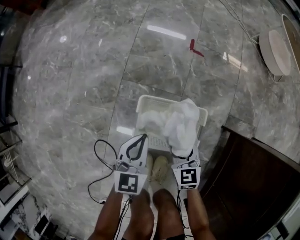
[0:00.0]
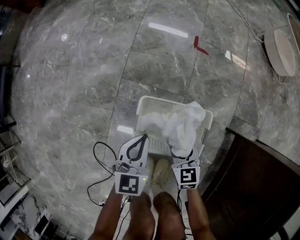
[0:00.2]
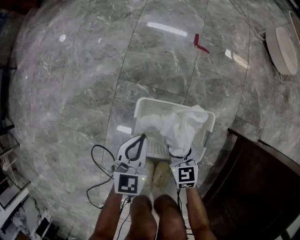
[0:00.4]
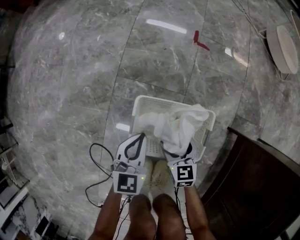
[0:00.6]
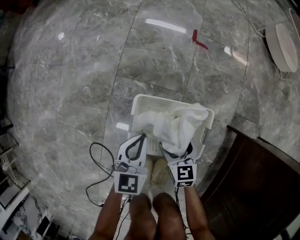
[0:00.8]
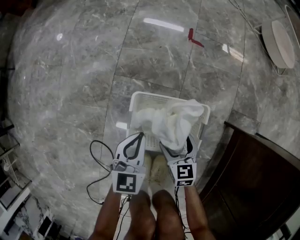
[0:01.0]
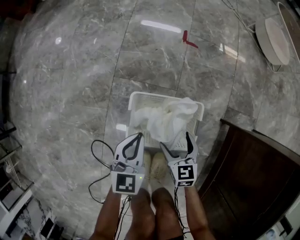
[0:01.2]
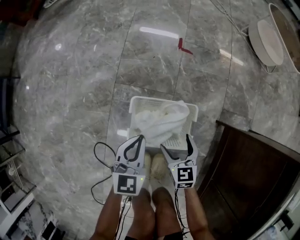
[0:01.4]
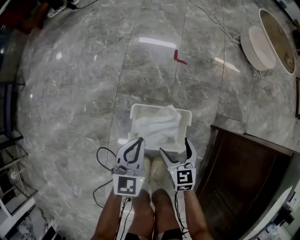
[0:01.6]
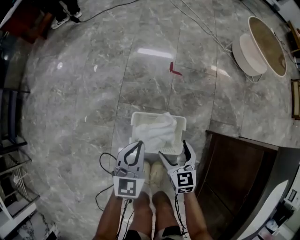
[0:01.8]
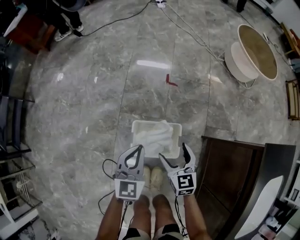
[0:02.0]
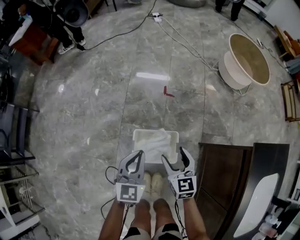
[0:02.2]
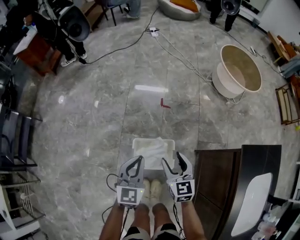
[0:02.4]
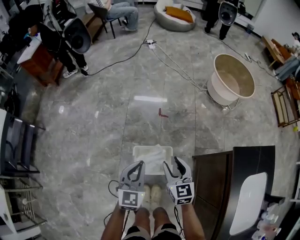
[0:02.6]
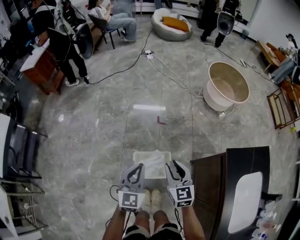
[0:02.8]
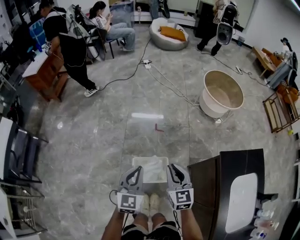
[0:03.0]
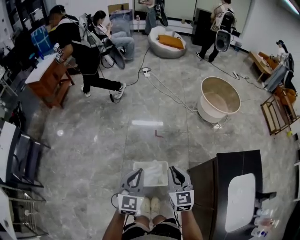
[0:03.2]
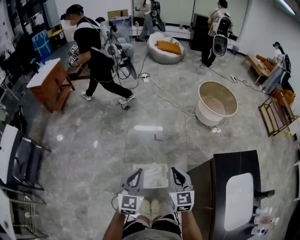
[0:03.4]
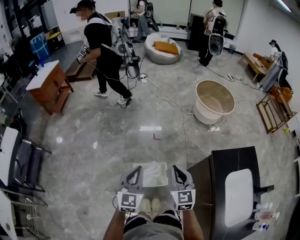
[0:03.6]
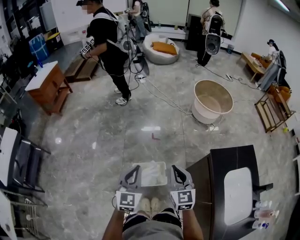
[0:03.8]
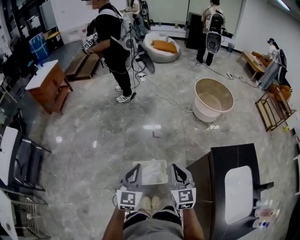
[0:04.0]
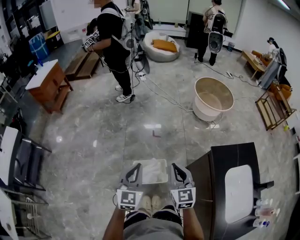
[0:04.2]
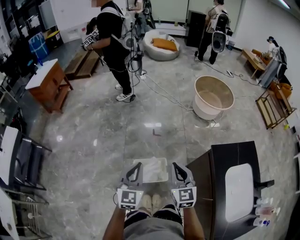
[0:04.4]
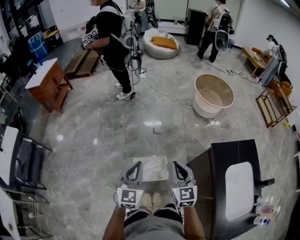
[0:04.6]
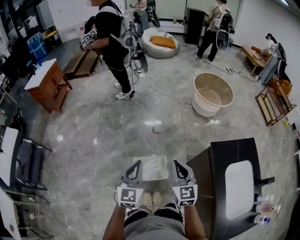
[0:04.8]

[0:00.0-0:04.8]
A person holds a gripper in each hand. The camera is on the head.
0:00.0 to 0:01.6: The grippers both shift upward by roughly 10 cm. The right gripper opens.
0:01.6 to 0:03.2: Both grippers travel together upward, about 50 cm. The right gripper turns by some 30 degrees, and closes up; the left gripper swivels roughly 20 degrees.
0:03.2 to 0:04.8: The left gripper changes place by about 5 cm. The right gripper travels backward and upward by approximately 10 cm.

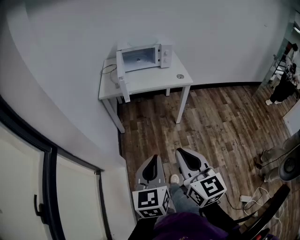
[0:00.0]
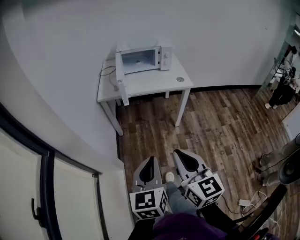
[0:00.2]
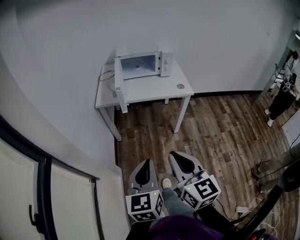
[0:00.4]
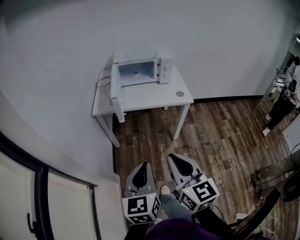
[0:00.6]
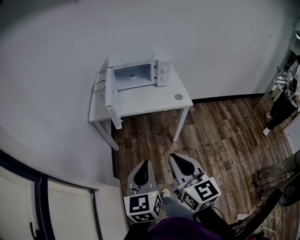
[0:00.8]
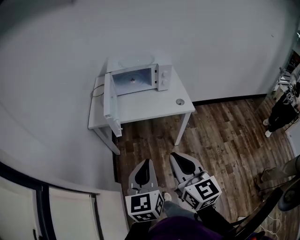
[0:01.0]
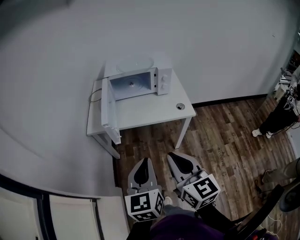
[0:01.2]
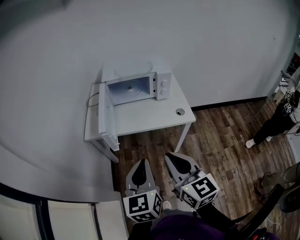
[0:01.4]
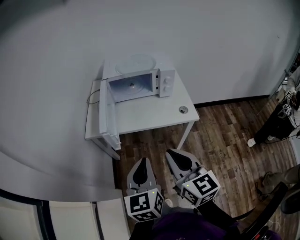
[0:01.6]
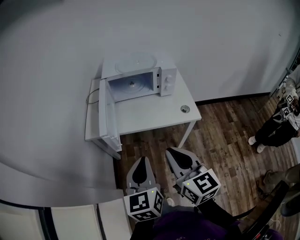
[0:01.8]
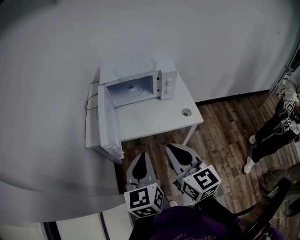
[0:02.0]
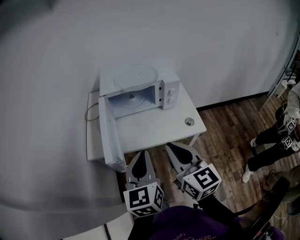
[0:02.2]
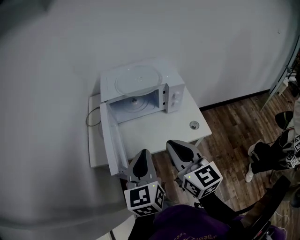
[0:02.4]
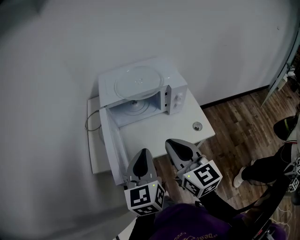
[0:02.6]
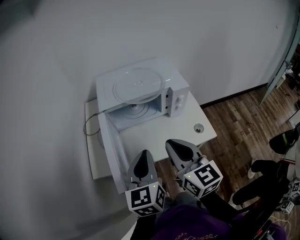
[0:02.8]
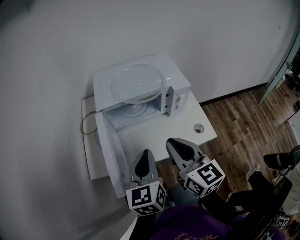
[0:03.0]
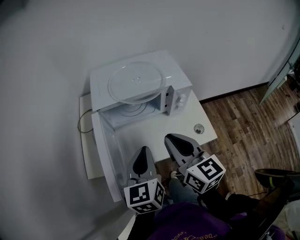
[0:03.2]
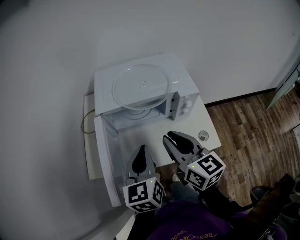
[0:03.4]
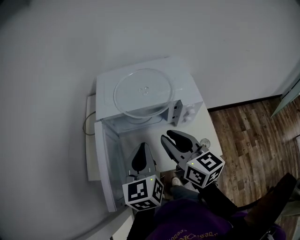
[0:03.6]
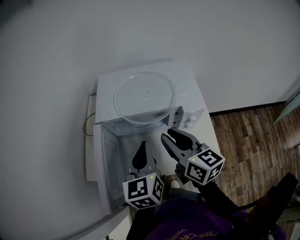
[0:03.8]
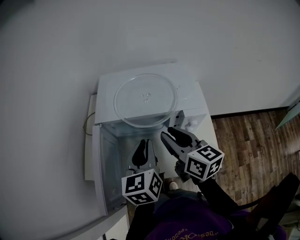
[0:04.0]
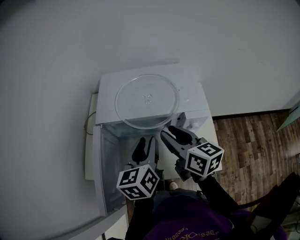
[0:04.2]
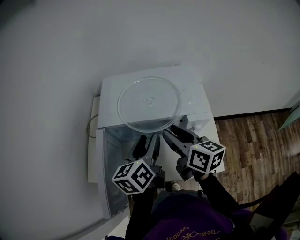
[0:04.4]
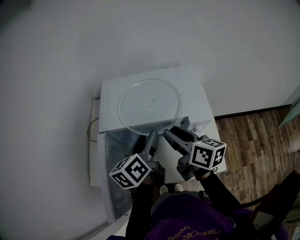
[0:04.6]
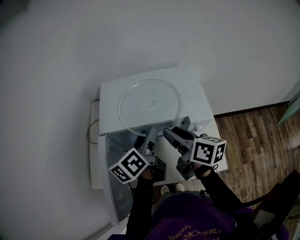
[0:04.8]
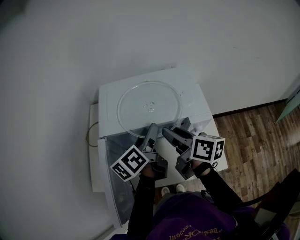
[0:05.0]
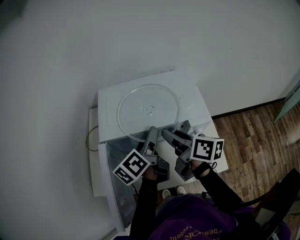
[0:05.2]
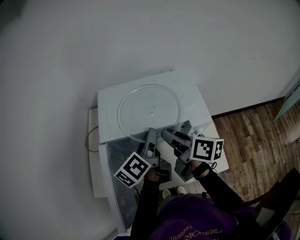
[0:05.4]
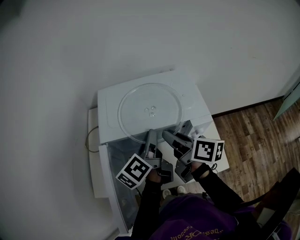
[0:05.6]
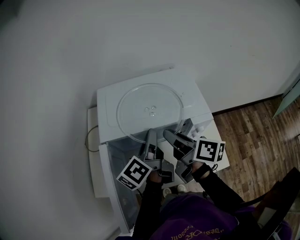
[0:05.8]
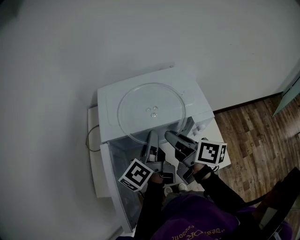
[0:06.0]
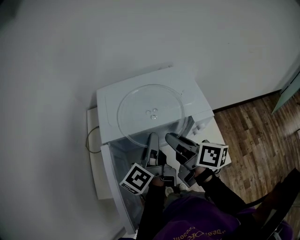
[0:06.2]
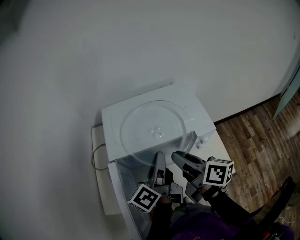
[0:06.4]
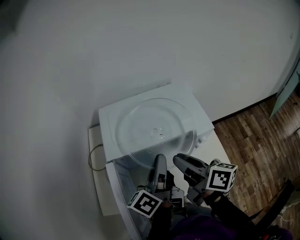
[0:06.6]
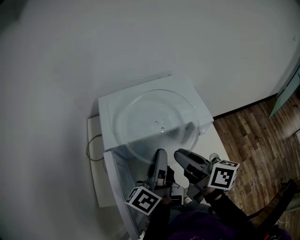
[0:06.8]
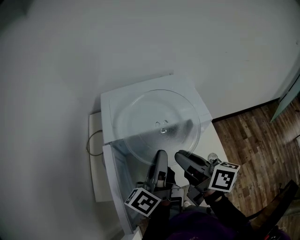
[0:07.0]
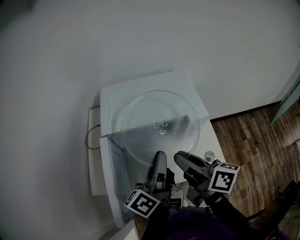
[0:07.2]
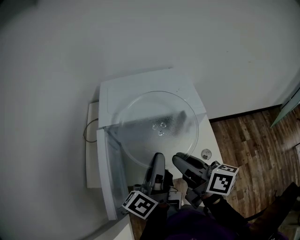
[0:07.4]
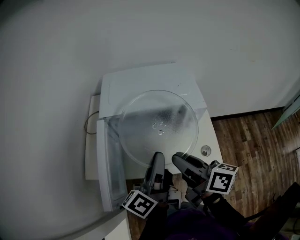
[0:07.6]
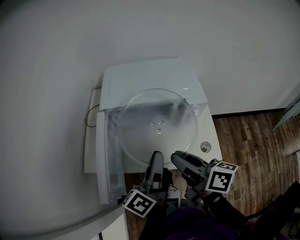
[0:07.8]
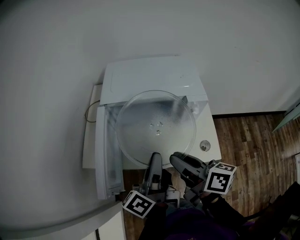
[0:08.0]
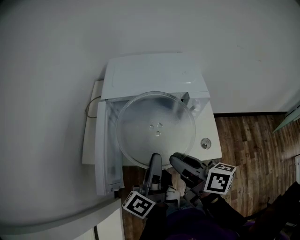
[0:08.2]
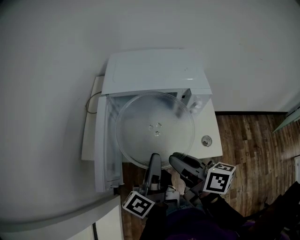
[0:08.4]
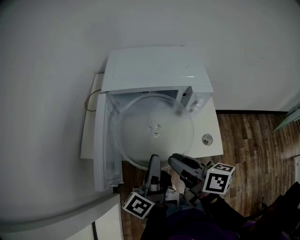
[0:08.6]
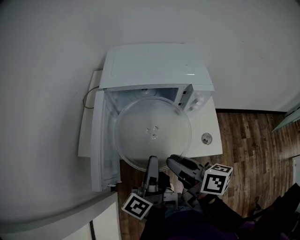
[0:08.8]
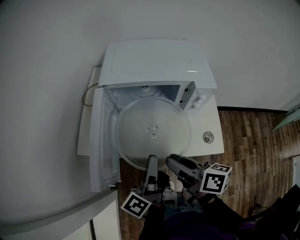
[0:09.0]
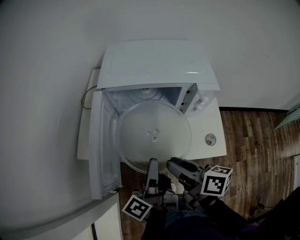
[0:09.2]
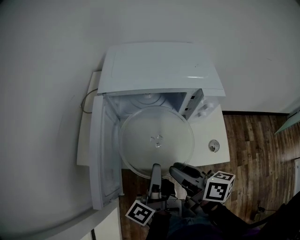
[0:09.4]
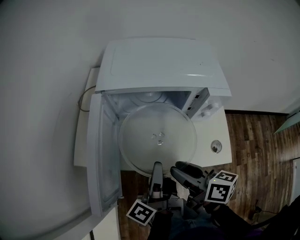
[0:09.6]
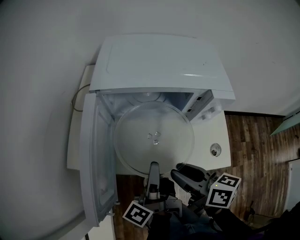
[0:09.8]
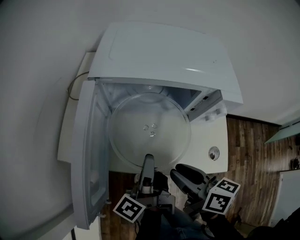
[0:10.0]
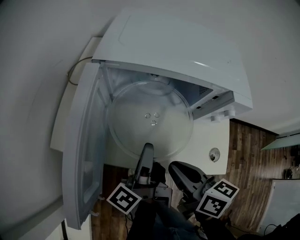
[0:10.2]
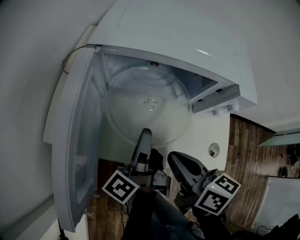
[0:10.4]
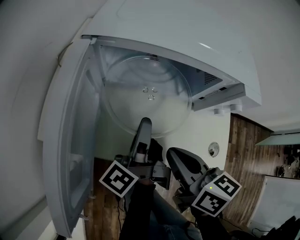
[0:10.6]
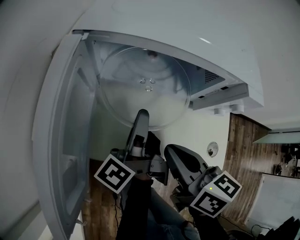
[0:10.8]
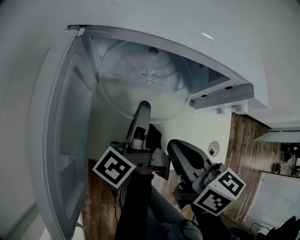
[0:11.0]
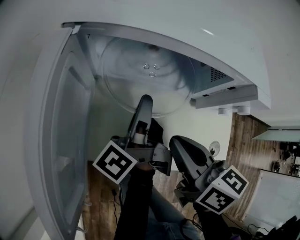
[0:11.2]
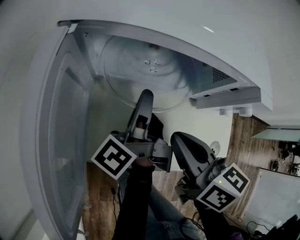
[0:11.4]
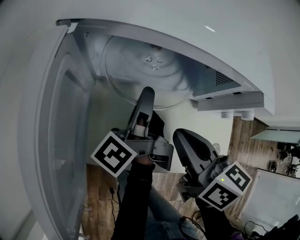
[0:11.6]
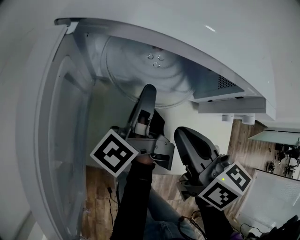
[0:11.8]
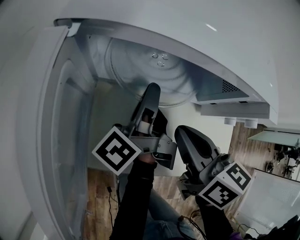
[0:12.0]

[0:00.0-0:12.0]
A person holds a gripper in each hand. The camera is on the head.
0:00.0 to 0:01.6: Both grippers move forward, about 30 cm.
0:01.6 to 0:03.0: The grippers both shift forward by roughly 25 cm.
0:03.0 to 0:04.4: The left gripper shifts some 20 cm forward and to the right, rotates some 20 degrees, and opens up, while the right gripper travels forward by about 20 cm, swivels approximately 30 degrees, and opens.
0:04.4 to 0:06.0: The right gripper rotates about 30 degrees, while the left gripper turns by about 30 degrees, and closes its fingers.
0:06.0 to 0:07.6: Both grippers travel together backward, approximately 15 cm.
0:07.6 to 0:09.0: The left gripper heads downward and backward, covering approximately 10 cm, while the right gripper travels downward by about 10 cm.
0:09.0 to 0:10.4: The right gripper travels downward and forward by approximately 10 cm, and closes up. Meanwhile the left gripper goes about 15 cm forward and downward.
0:10.4 to 0:12.0: Both grippers travel together forward, approximately 10 cm.

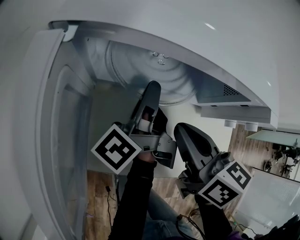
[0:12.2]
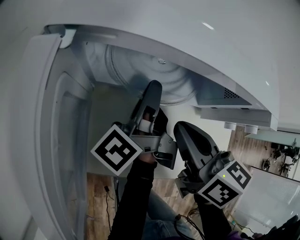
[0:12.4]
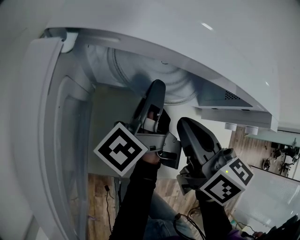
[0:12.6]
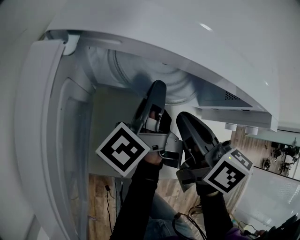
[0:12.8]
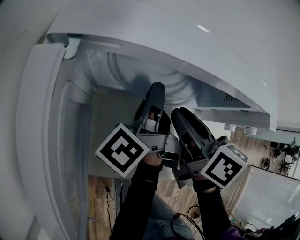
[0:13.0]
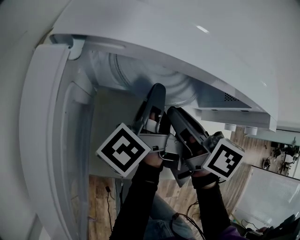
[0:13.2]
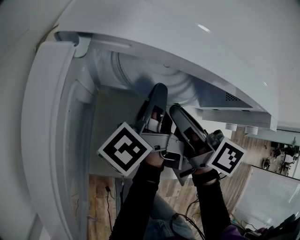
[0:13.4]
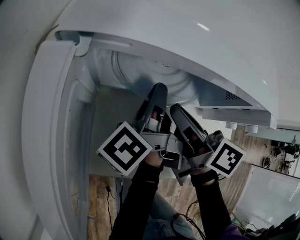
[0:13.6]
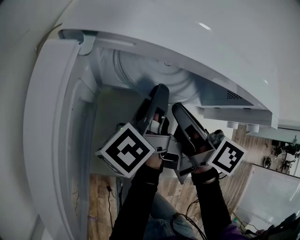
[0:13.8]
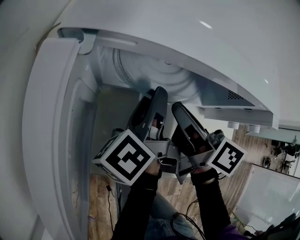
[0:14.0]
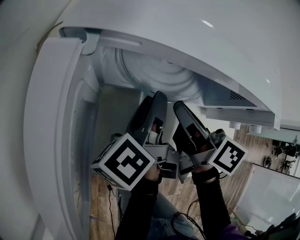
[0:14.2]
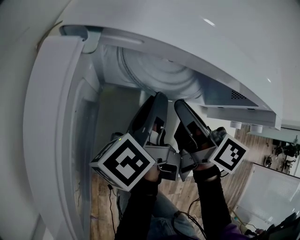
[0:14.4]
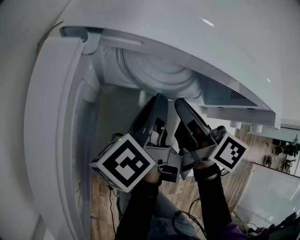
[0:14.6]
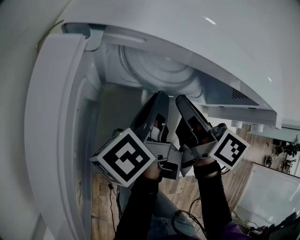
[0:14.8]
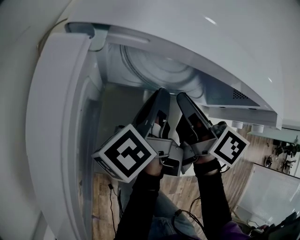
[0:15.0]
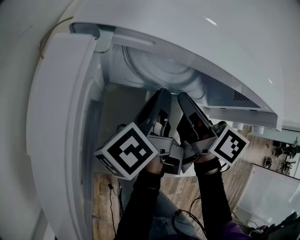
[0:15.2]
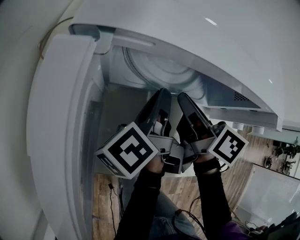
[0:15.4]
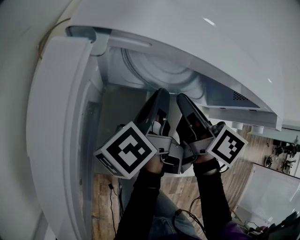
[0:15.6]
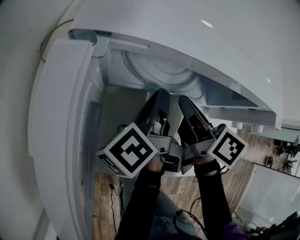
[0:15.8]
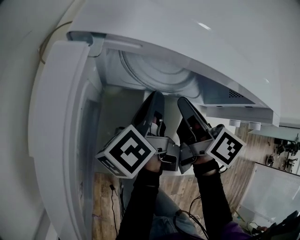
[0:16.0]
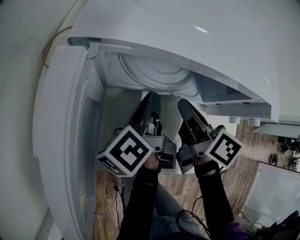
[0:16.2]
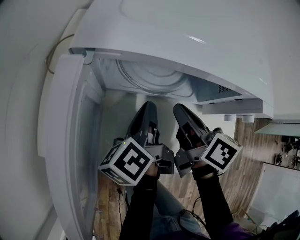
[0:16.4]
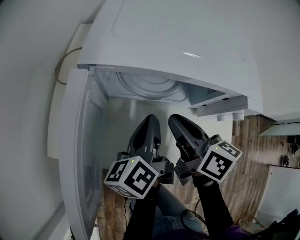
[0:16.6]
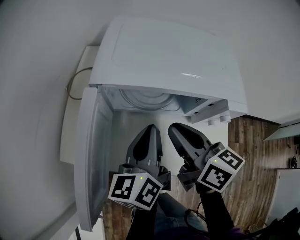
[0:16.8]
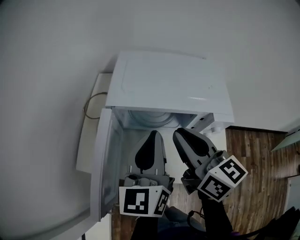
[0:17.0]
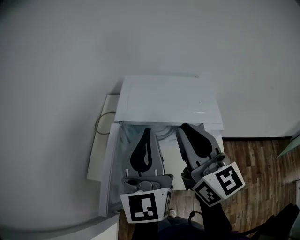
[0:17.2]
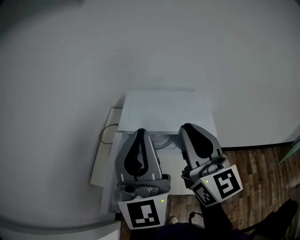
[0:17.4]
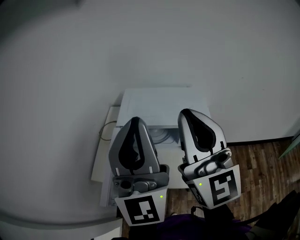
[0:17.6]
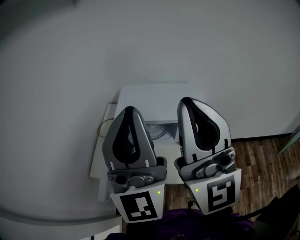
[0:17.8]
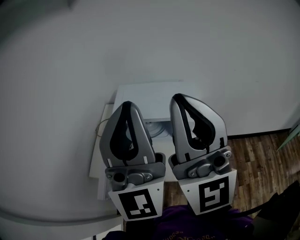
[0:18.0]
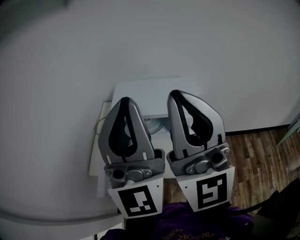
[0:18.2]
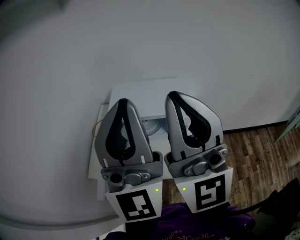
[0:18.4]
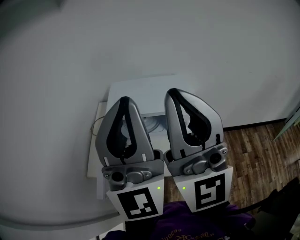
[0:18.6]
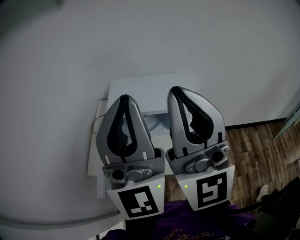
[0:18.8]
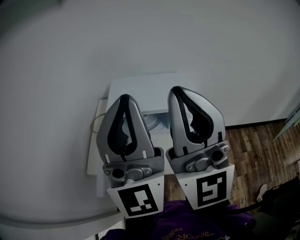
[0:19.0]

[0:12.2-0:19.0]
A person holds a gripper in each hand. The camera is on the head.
0:12.2 to 0:13.6: The right gripper shifts by some 5 cm, and changes its angle by approximately 20 degrees.
0:13.6 to 0:15.0: The left gripper opens and closes again.
0:15.0 to 0:16.2: The grippers make only small movements.
0:16.2 to 0:17.6: The two grippers go roughly 50 cm upward. The left gripper twists approximately 80 degrees clockwise, seen from behind. Meanwhile the right gripper points its fingers some 50 degrees further upward.
0:17.6 to 0:19.0: The right gripper heads backward, covering about 5 cm.
